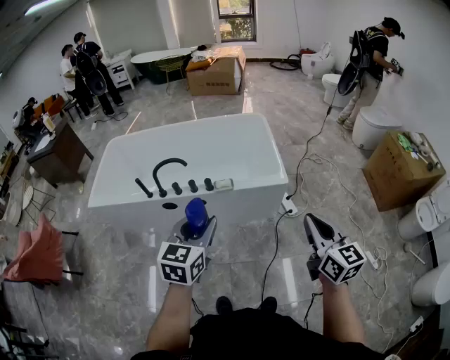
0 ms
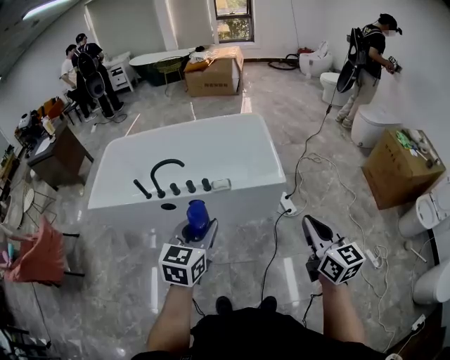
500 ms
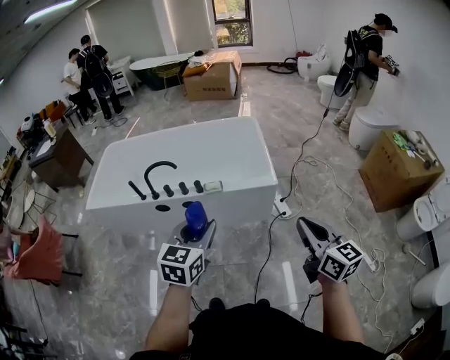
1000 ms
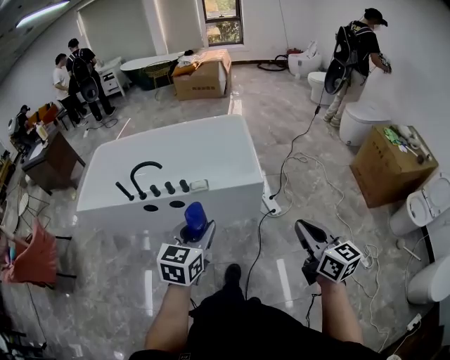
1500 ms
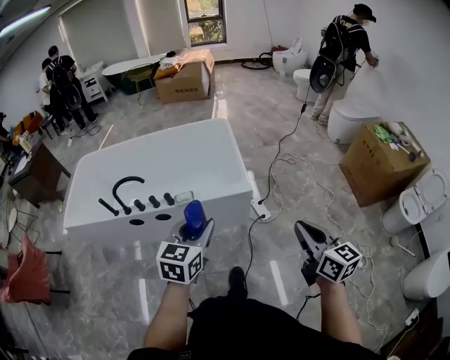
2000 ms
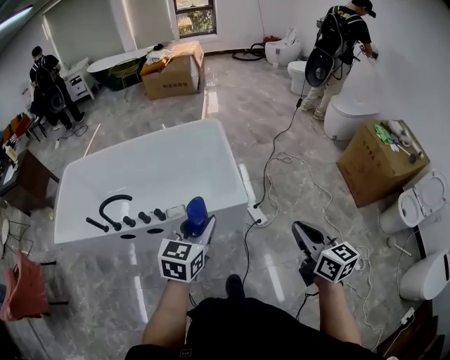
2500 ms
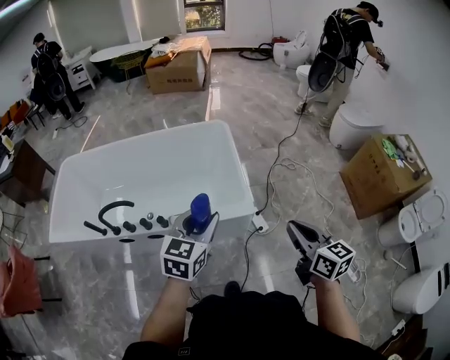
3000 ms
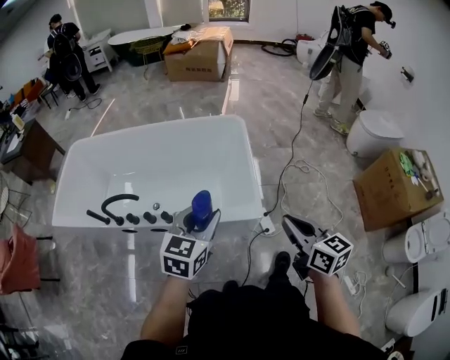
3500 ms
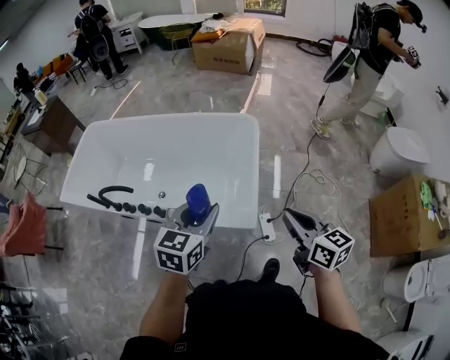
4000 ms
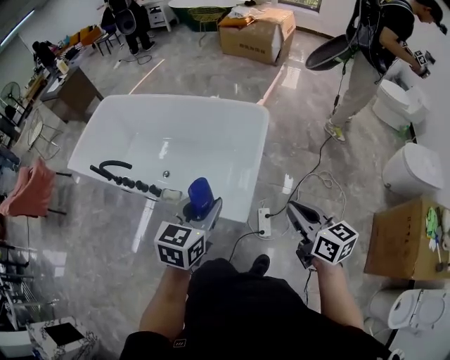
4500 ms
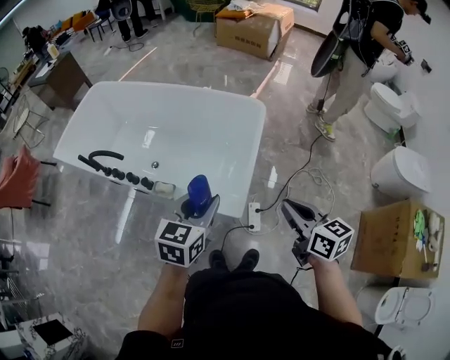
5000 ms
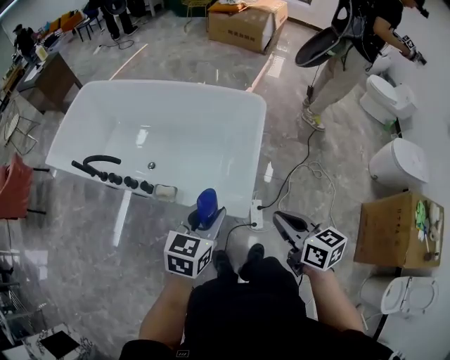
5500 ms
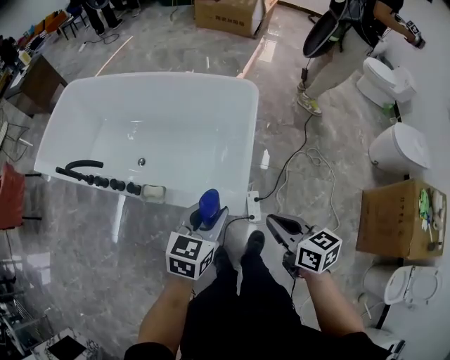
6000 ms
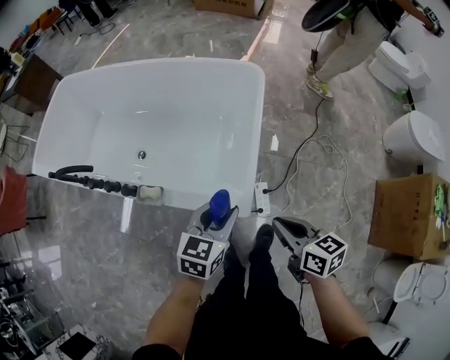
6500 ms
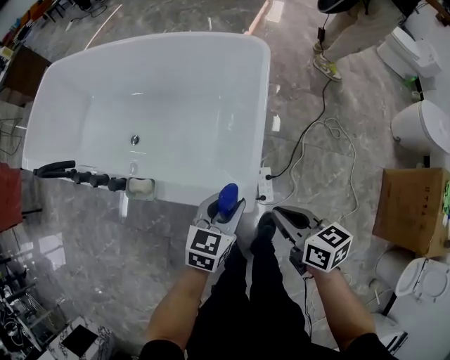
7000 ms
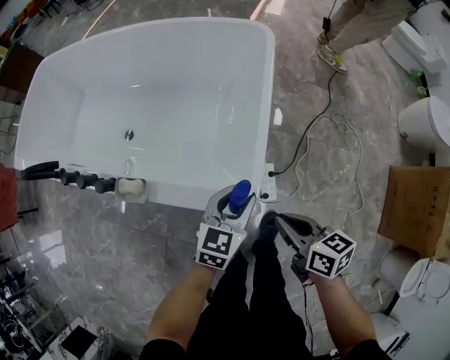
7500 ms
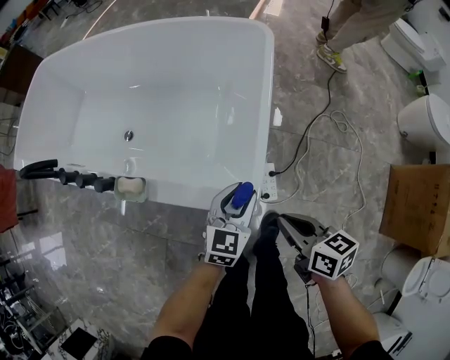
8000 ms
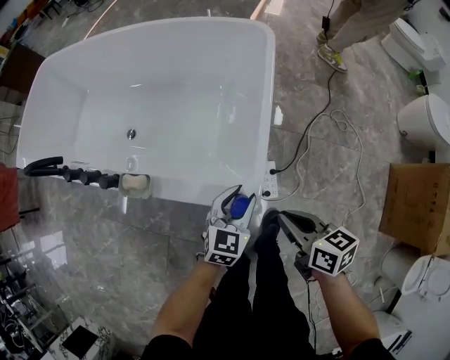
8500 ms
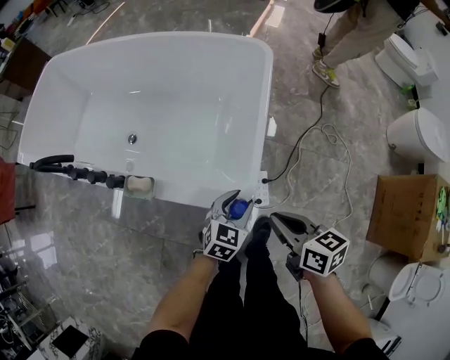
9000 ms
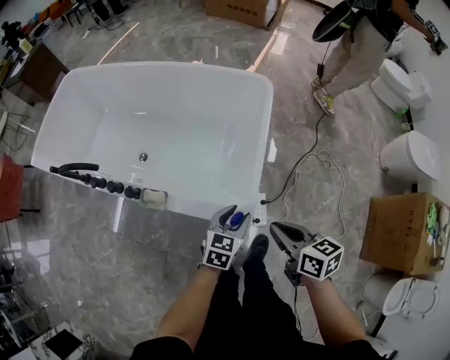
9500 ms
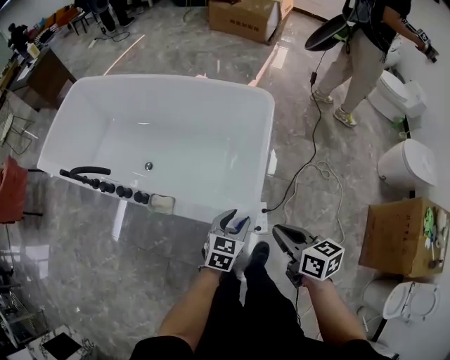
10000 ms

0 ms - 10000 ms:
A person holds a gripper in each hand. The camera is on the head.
0 ms - 2000 ms: The two grippers go about 15 cm to the right.
2000 ms - 4000 ms: The two grippers go some 35 cm forward. The right gripper swivels approximately 20 degrees.
4000 ms - 6000 ms: Both grippers move downward, approximately 15 cm.
6000 ms - 8000 ms: Both grippers move downward, roughly 25 cm.
8000 ms - 10000 ms: The right gripper heads upward, covering roughly 15 cm; the left gripper heads upward, covering about 10 cm.

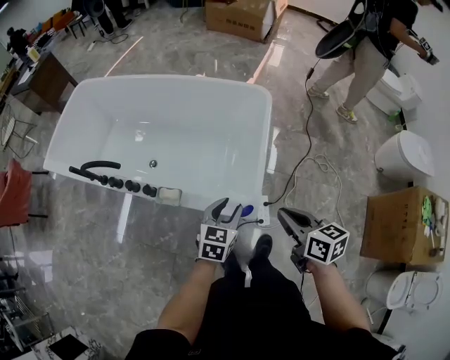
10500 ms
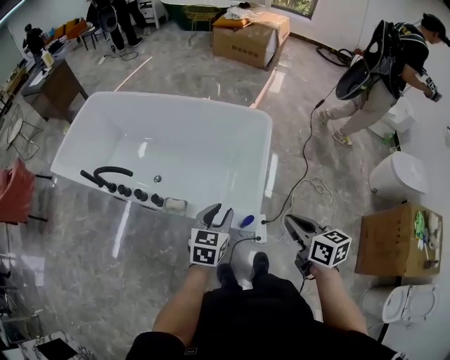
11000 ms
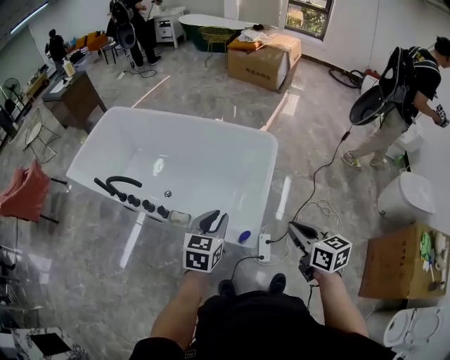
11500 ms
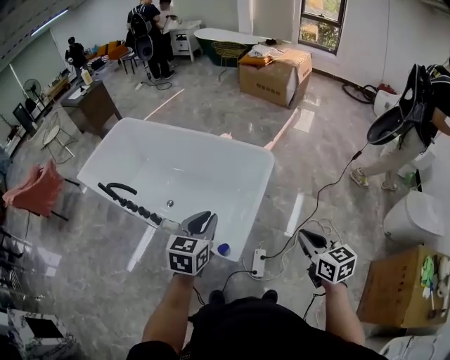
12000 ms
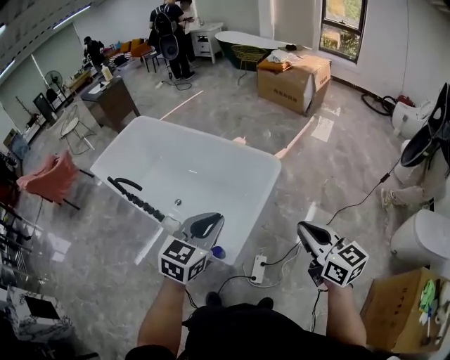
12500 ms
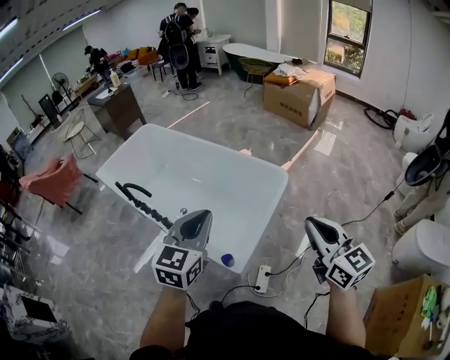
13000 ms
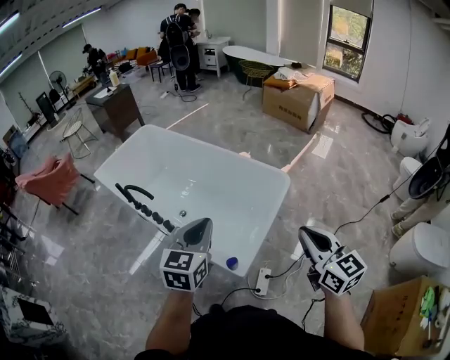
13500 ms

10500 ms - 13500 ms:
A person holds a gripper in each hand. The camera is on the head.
10500 ms - 12000 ms: The left gripper travels upward by some 20 cm, and closes up; the right gripper goes approximately 20 cm to the right and upward, and turns by roughly 20 degrees.
12000 ms - 13500 ms: The two grippers go roughly 10 cm upward and to the left. The right gripper rotates some 20 degrees.

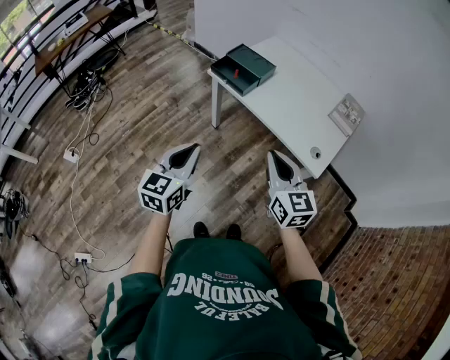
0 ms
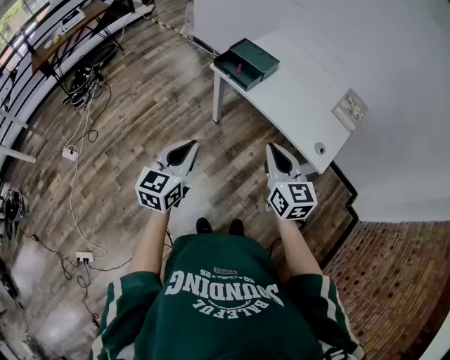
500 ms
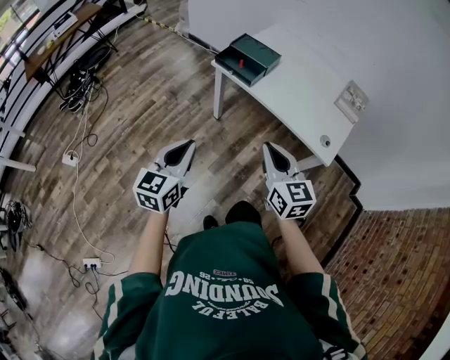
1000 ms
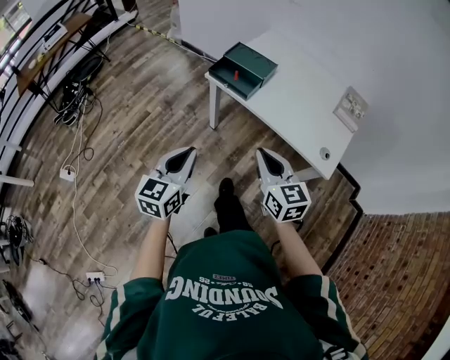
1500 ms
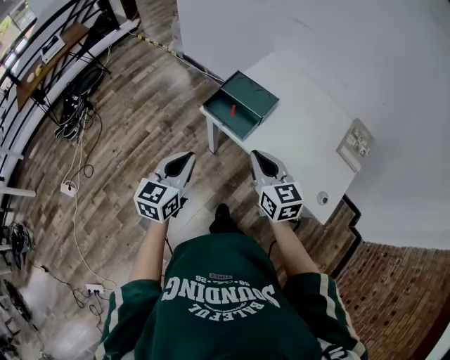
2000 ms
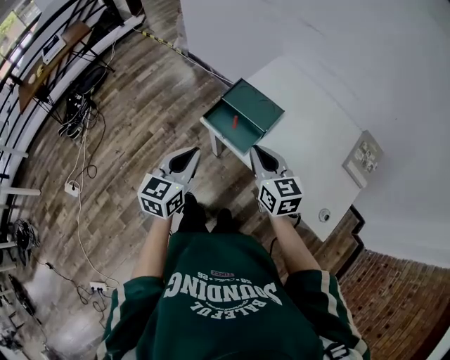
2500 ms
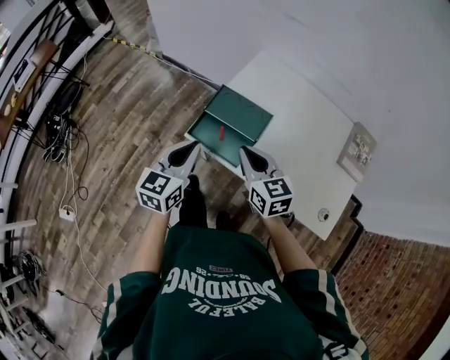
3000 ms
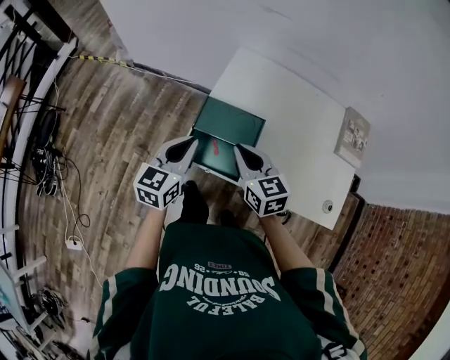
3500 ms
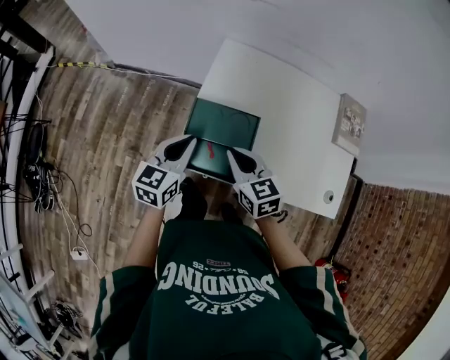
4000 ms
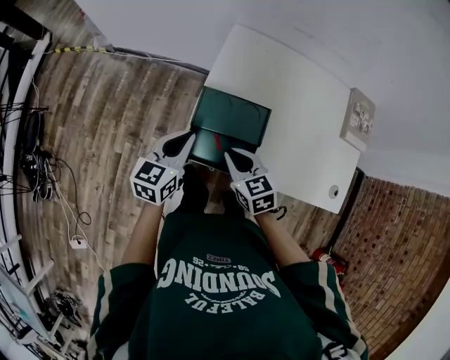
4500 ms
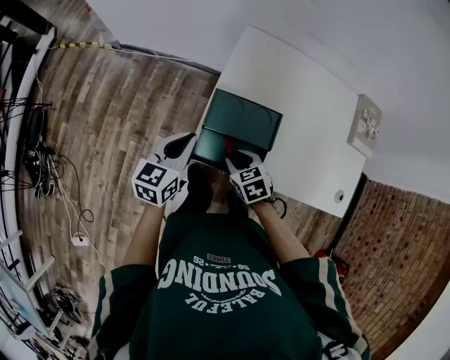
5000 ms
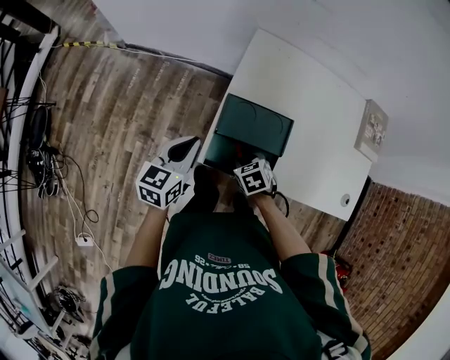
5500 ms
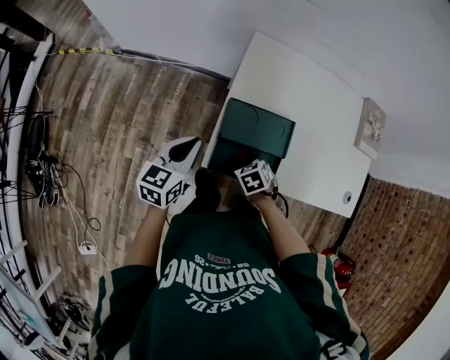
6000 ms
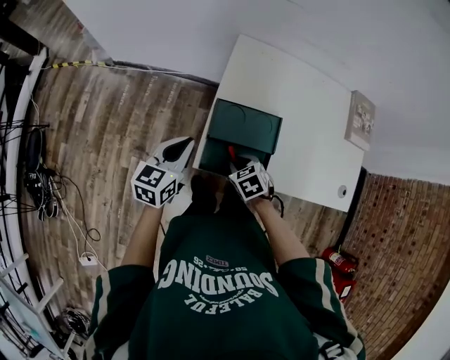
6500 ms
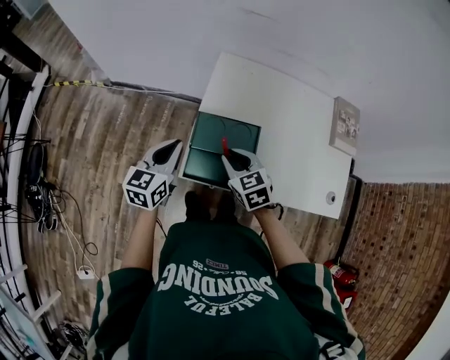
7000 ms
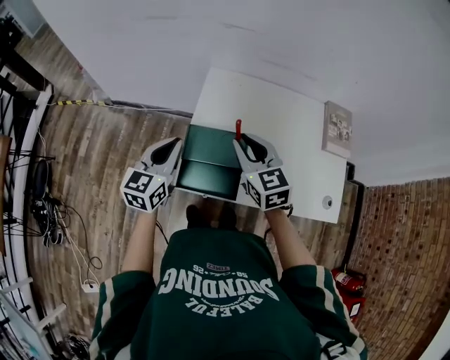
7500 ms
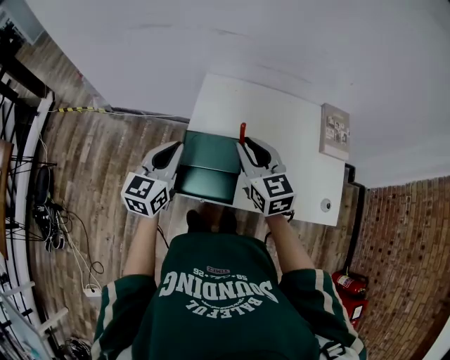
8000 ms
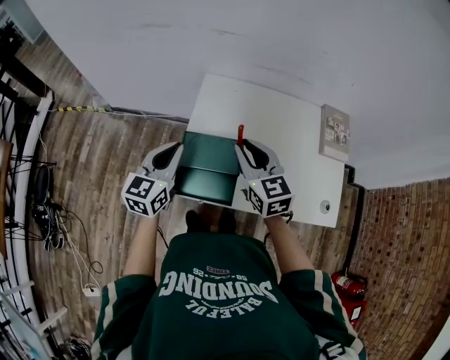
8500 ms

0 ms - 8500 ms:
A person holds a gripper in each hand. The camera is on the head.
0 ms - 2000 ms: The grippers both shift forward by approximately 25 cm.
2000 ms - 4000 ms: The grippers both shift forward by roughly 30 cm. The right gripper changes its angle by roughly 20 degrees. Meanwhile the left gripper swivels roughly 30 degrees.
4000 ms - 6500 ms: The left gripper shifts approximately 10 cm to the left. Meanwhile the right gripper moves downward, roughly 15 cm, and tips its fingers downward by approximately 40 degrees.
6500 ms - 8500 ms: The left gripper moves upward and to the right, approximately 15 cm. Meanwhile the right gripper is displaced upward by some 25 cm, and tilts its fingers roughly 50 degrees upward.

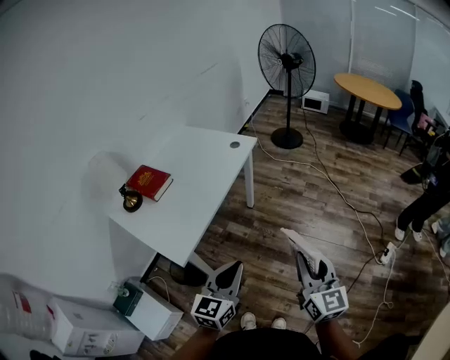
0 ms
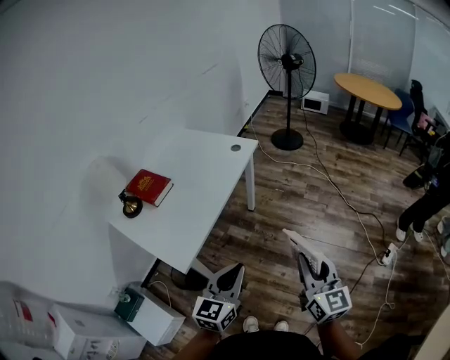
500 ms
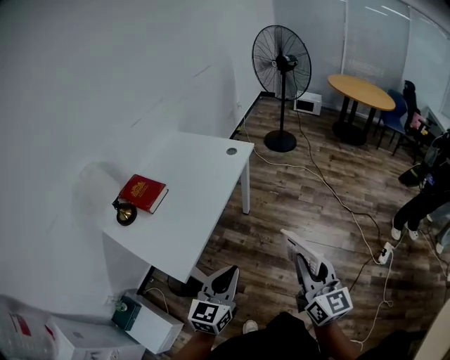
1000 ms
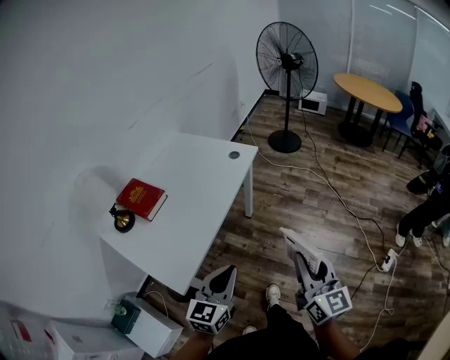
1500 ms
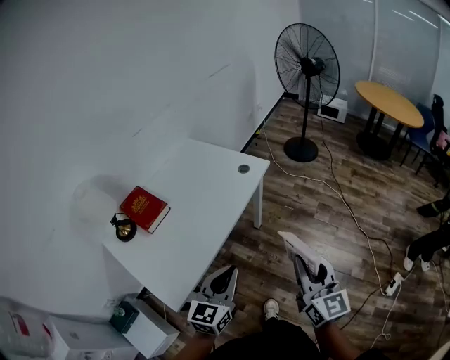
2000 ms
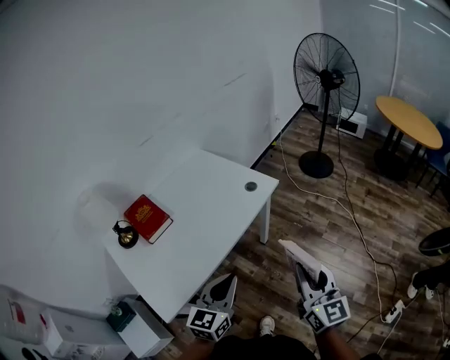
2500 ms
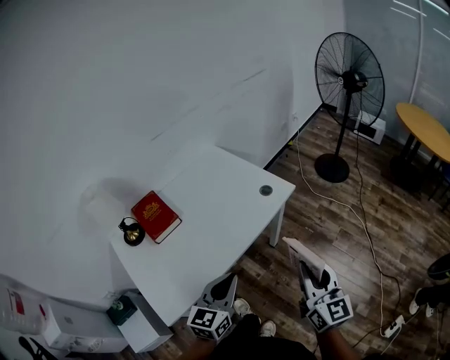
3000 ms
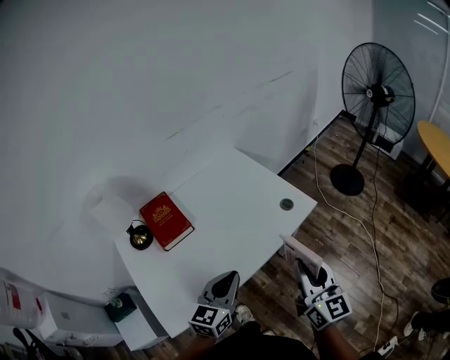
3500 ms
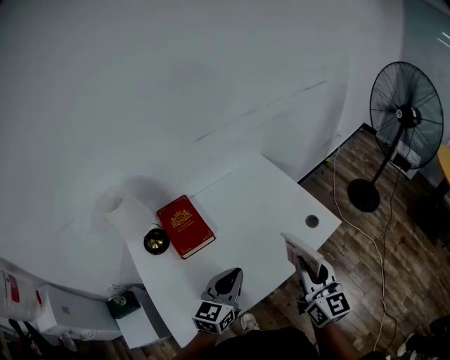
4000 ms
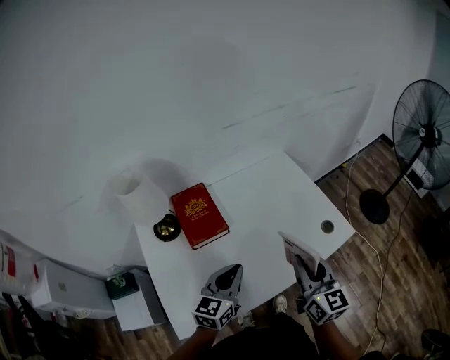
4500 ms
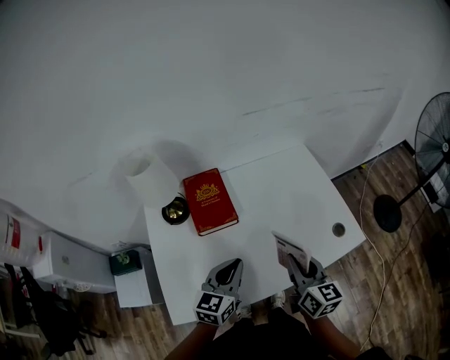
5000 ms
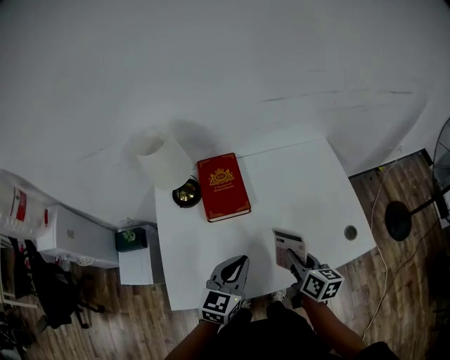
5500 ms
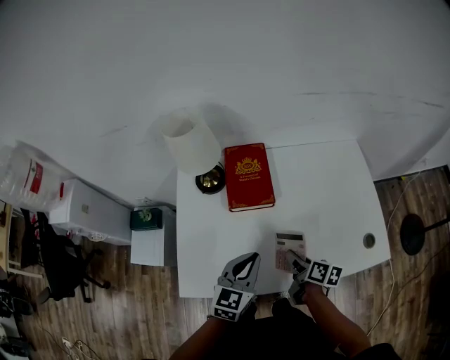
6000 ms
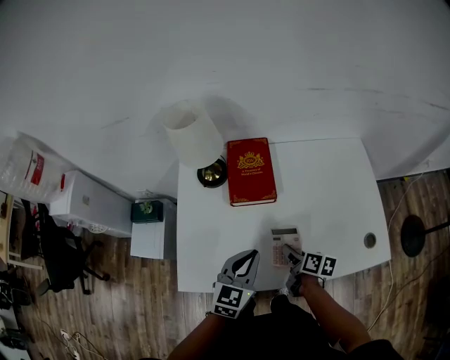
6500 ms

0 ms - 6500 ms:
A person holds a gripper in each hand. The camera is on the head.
0 ms - 2000 ms: Both grippers move forward, approximately 25 cm.
2000 ms - 4500 ms: The left gripper ends up approximately 30 cm from where it was, and rotates roughly 30 degrees, while the right gripper shifts by approximately 40 cm, and rotates approximately 30 degrees.
4500 ms - 6500 ms: The left gripper goes about 5 cm downward, and swivels some 20 degrees. The right gripper shifts approximately 25 cm downward, and points its fingers about 30 degrees further downward.
